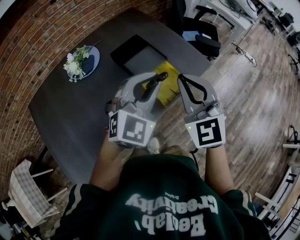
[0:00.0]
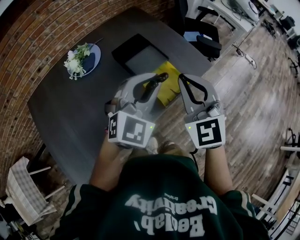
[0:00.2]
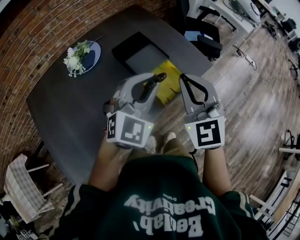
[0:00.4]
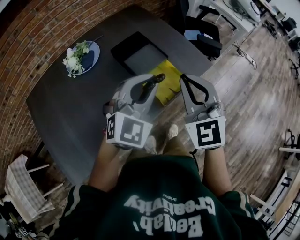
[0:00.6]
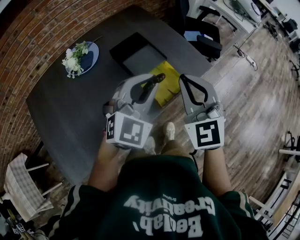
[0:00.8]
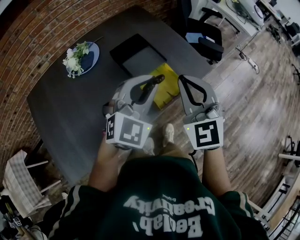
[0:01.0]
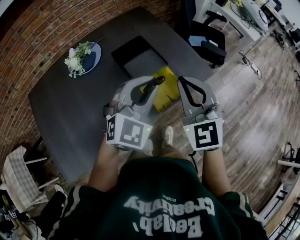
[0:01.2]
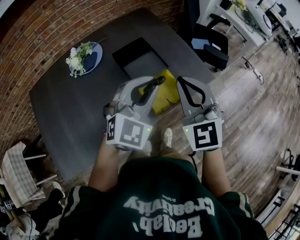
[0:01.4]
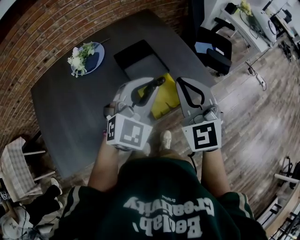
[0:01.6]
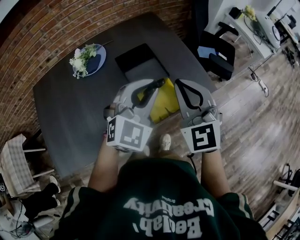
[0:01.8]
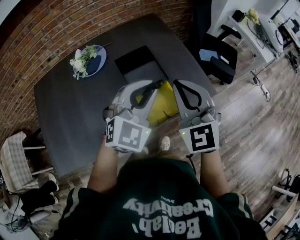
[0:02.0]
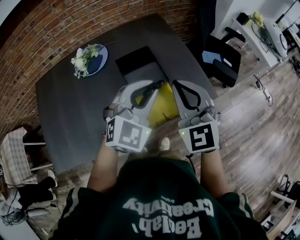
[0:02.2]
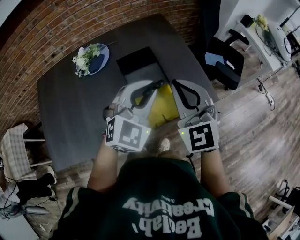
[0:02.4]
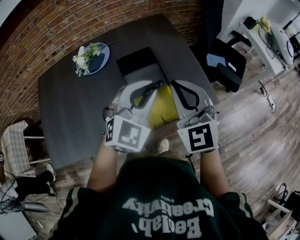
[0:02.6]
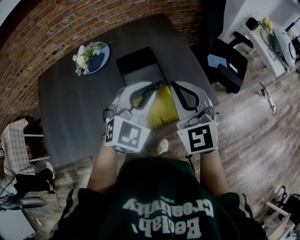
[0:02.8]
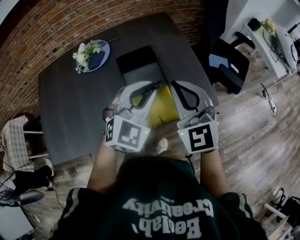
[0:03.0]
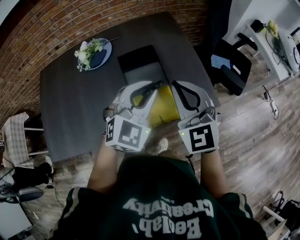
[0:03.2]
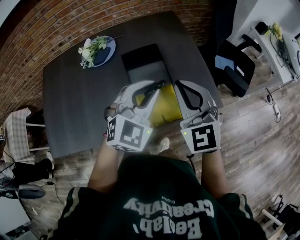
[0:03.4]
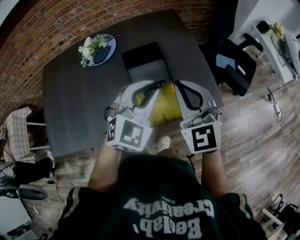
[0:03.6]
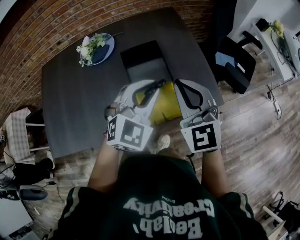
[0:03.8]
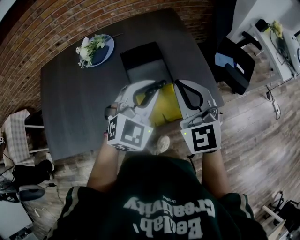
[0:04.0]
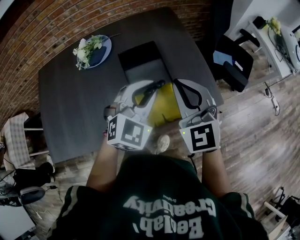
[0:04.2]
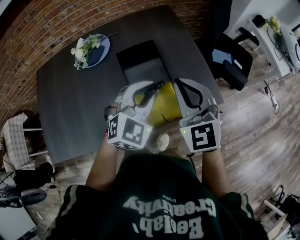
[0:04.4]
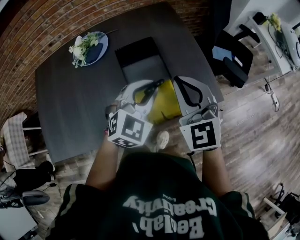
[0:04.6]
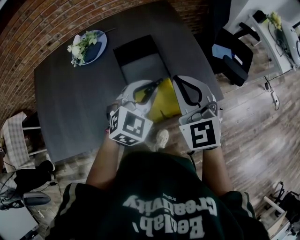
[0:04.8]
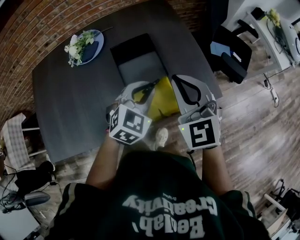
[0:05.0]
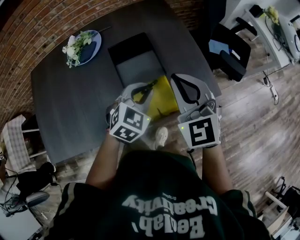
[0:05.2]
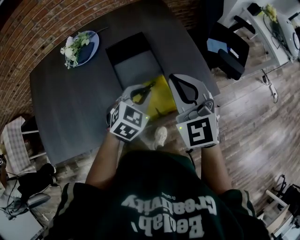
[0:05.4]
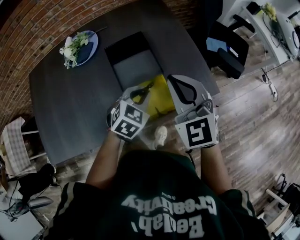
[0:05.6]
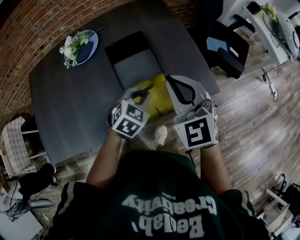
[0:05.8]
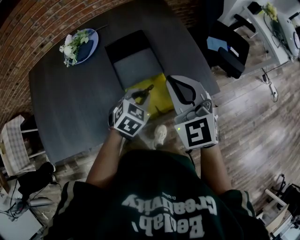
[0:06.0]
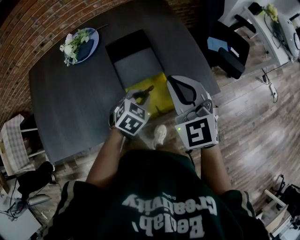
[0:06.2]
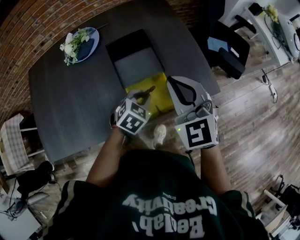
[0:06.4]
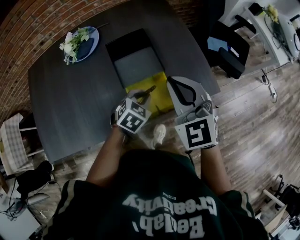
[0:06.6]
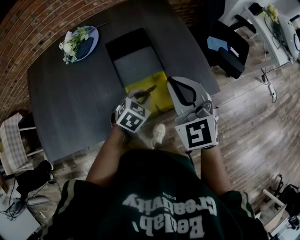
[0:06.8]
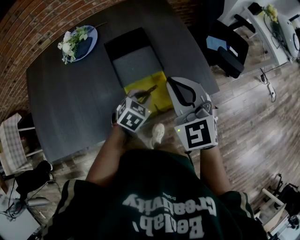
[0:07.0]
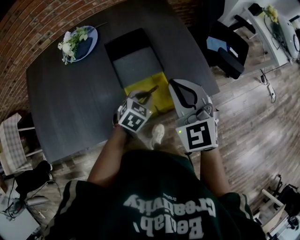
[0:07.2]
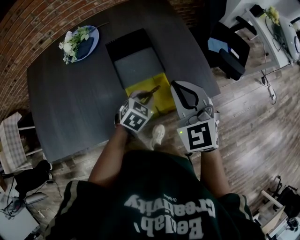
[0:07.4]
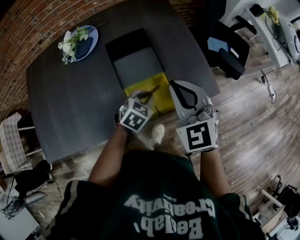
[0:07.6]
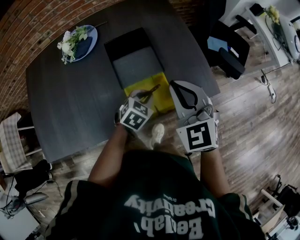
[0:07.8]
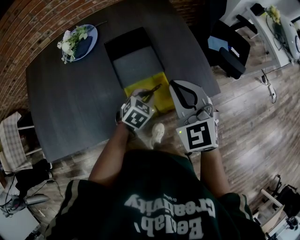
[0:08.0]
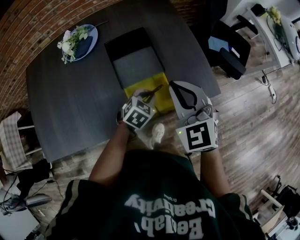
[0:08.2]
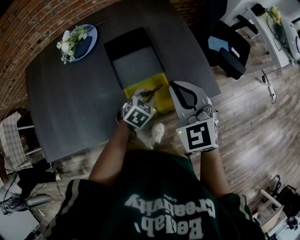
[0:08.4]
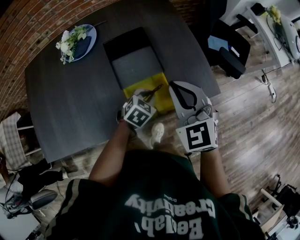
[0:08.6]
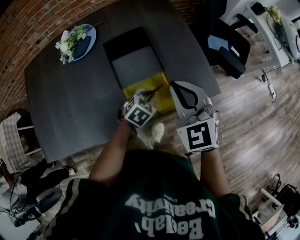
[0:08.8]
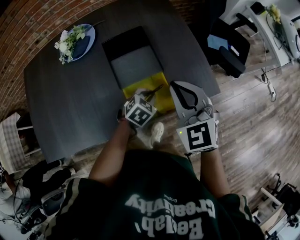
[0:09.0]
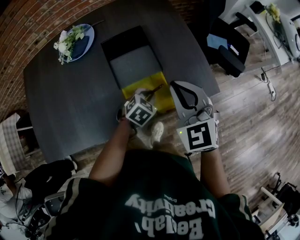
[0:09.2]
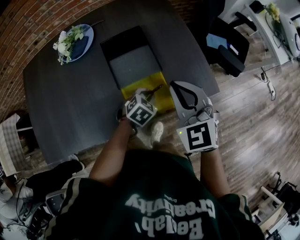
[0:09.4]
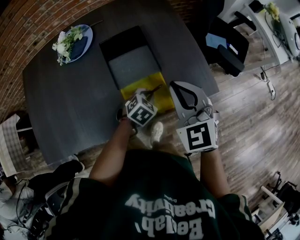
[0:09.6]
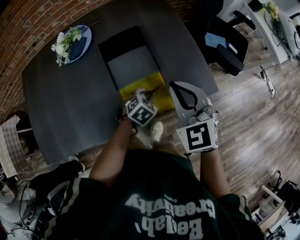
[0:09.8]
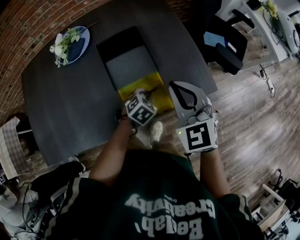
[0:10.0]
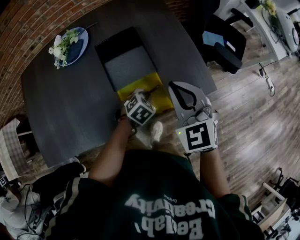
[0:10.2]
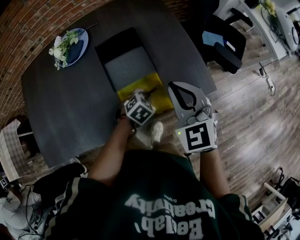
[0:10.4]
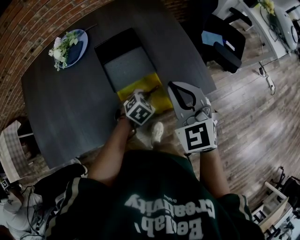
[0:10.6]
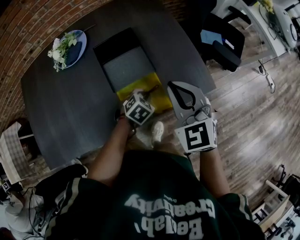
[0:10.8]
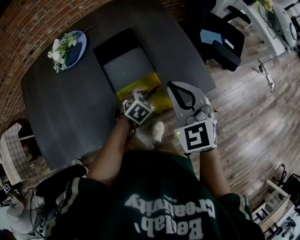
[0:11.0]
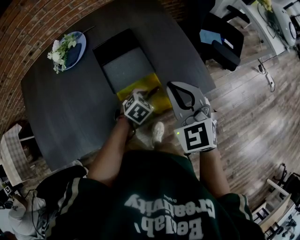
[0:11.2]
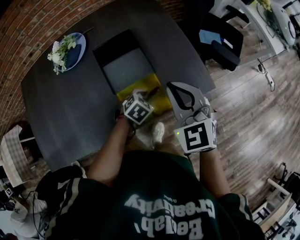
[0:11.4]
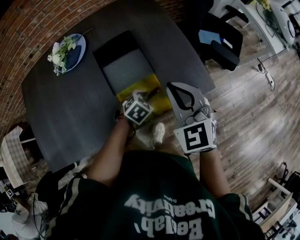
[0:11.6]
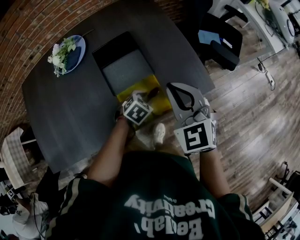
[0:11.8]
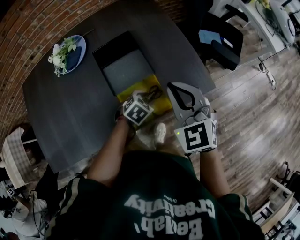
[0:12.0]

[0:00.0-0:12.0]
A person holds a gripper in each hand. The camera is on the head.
0:00.0 to 0:01.6: The grippers both shift forward by approximately 5 cm.
0:01.6 to 0:03.0: The left gripper goes some 10 cm forward and to the right; the right gripper is displaced forward by about 10 cm.
0:03.0 to 0:04.4: The grippers make only small movements.
0:04.4 to 0:06.0: The left gripper goes about 15 cm downward, and swivels about 30 degrees.
0:06.0 to 0:07.6: The left gripper heads downward, covering roughly 5 cm.
0:07.6 to 0:09.0: There are only small adjustments of the grippers.
0:09.0 to 0:10.4: There are only small adjustments of the grippers.
0:10.4 to 0:12.0: The left gripper opens up.

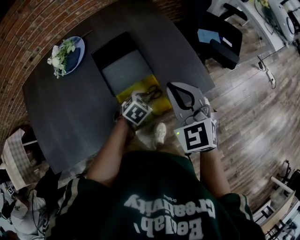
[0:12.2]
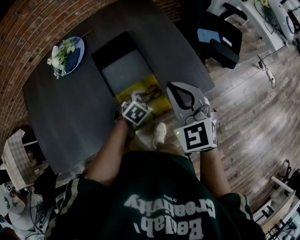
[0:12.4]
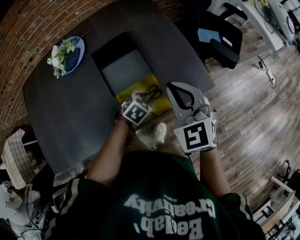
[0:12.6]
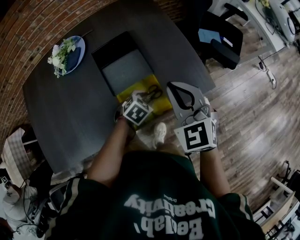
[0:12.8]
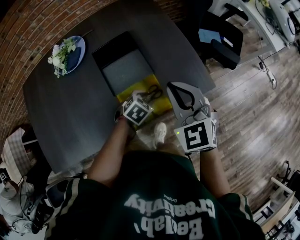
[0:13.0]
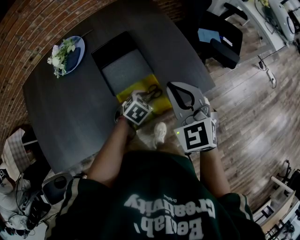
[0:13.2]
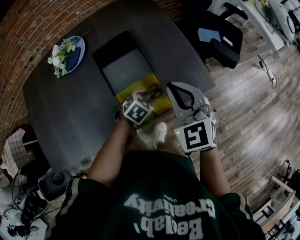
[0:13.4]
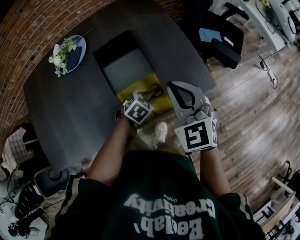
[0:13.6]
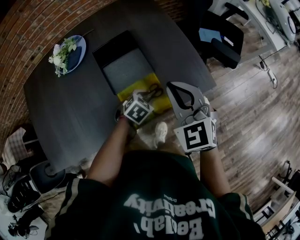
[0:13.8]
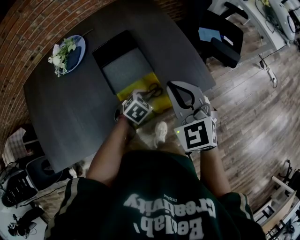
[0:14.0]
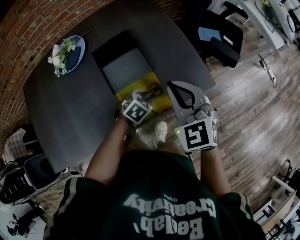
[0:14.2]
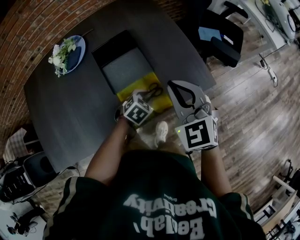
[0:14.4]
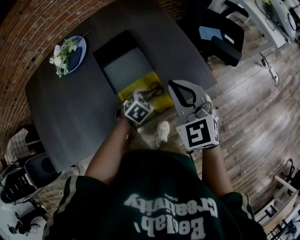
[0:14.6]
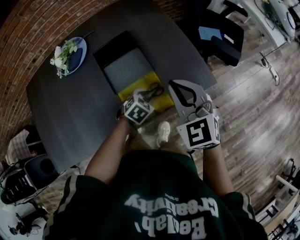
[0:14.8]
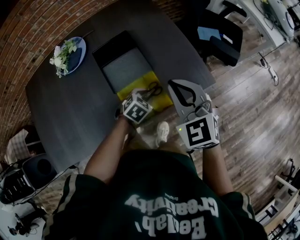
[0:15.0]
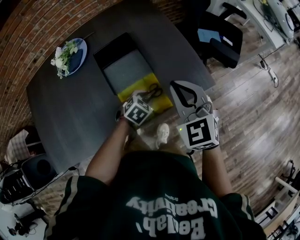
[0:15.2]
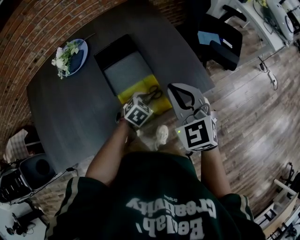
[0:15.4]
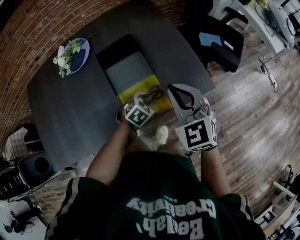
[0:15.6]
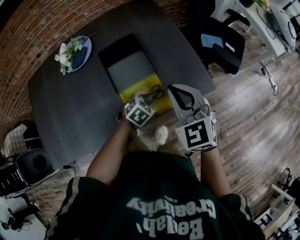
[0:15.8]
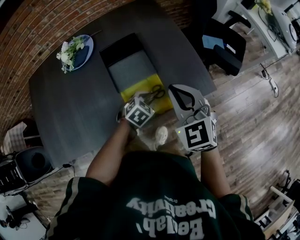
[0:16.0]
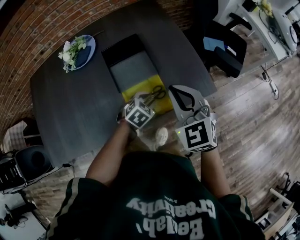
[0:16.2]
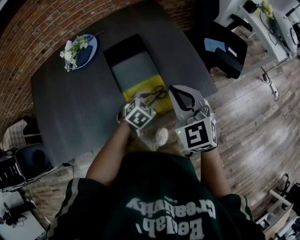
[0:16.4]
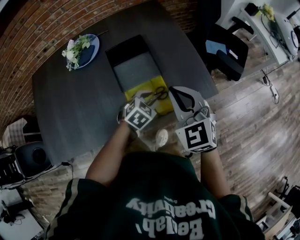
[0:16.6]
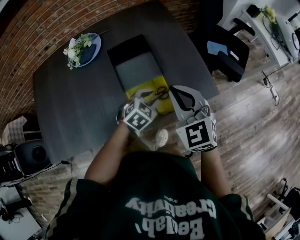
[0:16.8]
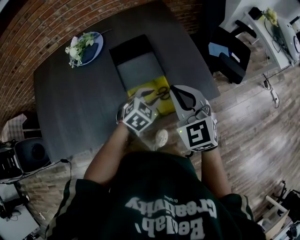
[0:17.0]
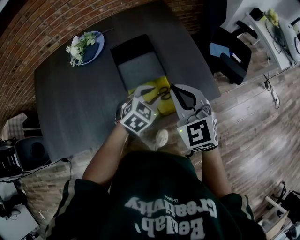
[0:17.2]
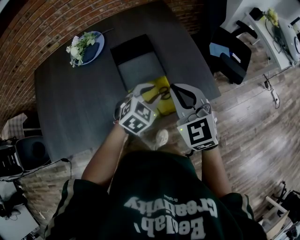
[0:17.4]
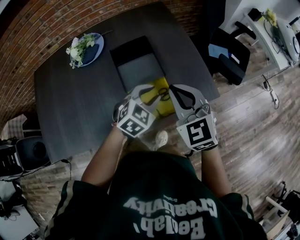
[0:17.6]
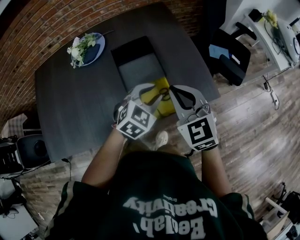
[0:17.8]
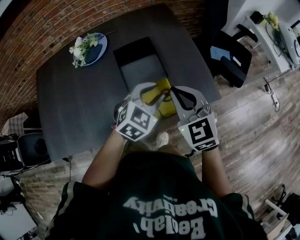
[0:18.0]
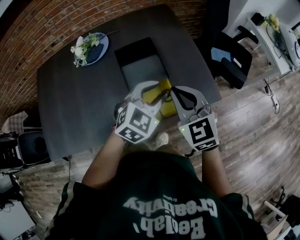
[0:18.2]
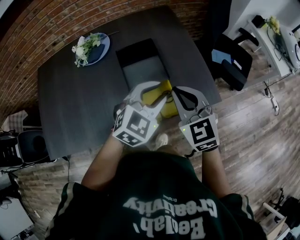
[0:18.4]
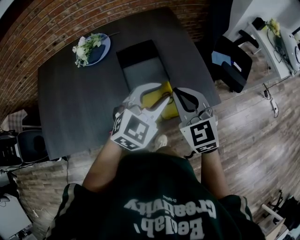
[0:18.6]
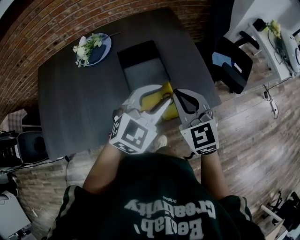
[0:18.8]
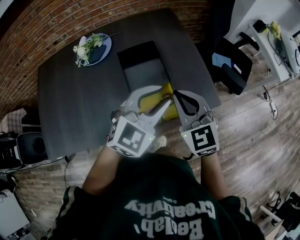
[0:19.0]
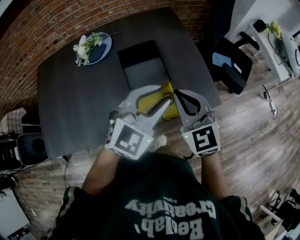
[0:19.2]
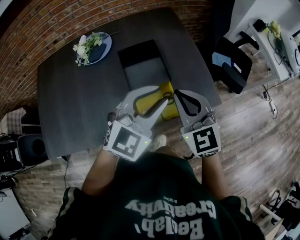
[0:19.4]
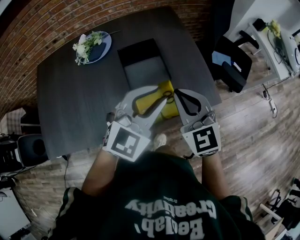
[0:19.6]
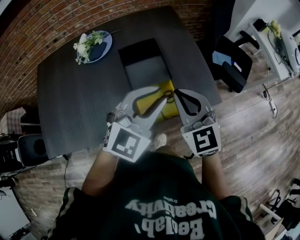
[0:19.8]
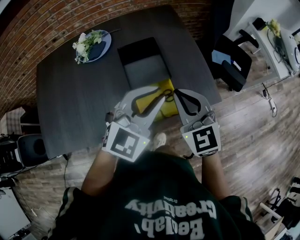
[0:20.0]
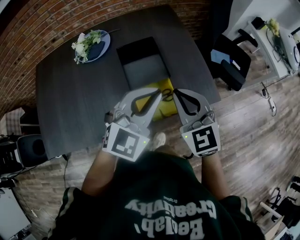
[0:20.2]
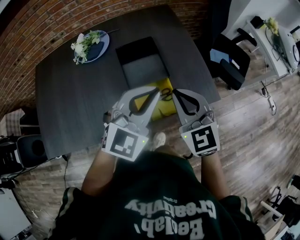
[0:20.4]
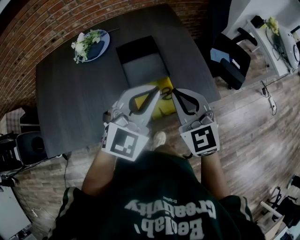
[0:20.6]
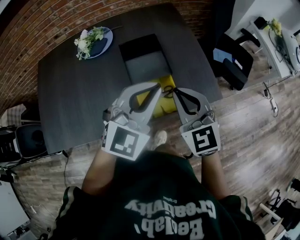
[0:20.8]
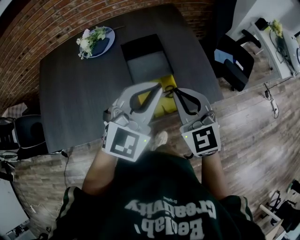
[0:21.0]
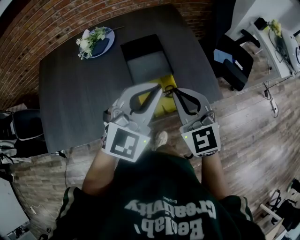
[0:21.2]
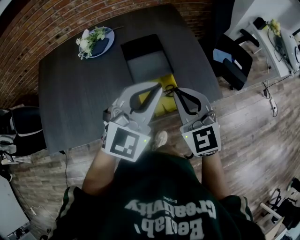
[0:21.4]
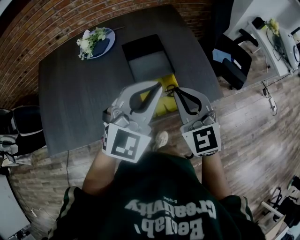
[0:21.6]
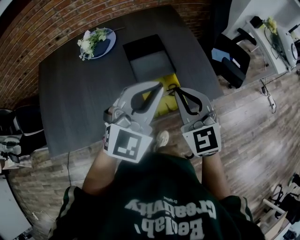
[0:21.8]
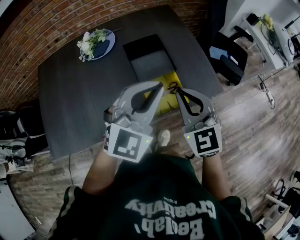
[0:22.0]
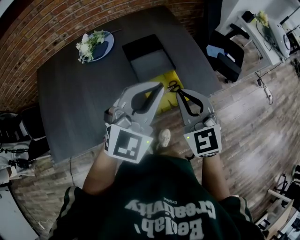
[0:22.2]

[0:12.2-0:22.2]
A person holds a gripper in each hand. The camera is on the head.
0:12.2 to 0:13.6: Neither gripper changes place.
0:13.6 to 0:16.4: The grippers move only a little.
0:16.4 to 0:18.0: The left gripper heads upward, covering roughly 15 cm, and changes its angle by about 20 degrees.
0:18.0 to 0:19.4: The left gripper heads upward, covering approximately 10 cm.
0:19.4 to 0:20.8: The left gripper closes up.
0:20.8 to 0:22.2: The right gripper is displaced backward by about 5 cm. The left gripper shifts about 10 cm to the left and backward.

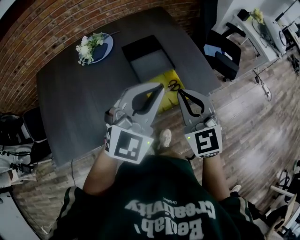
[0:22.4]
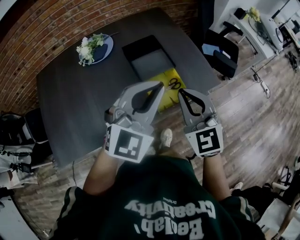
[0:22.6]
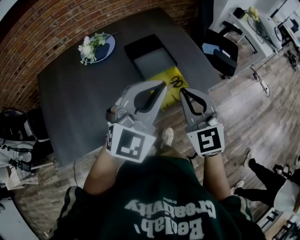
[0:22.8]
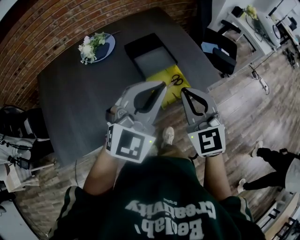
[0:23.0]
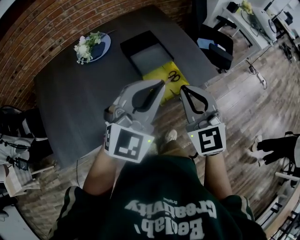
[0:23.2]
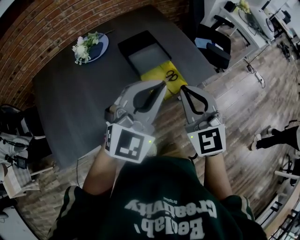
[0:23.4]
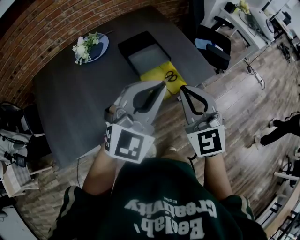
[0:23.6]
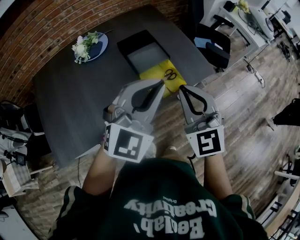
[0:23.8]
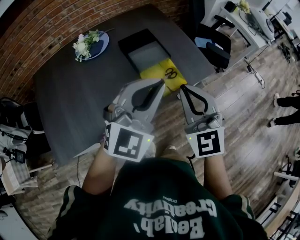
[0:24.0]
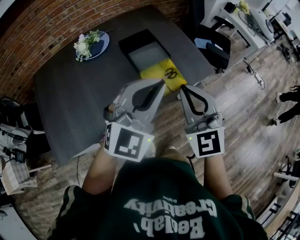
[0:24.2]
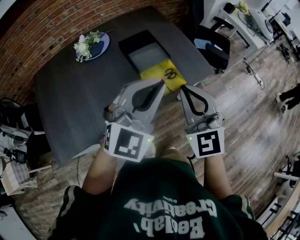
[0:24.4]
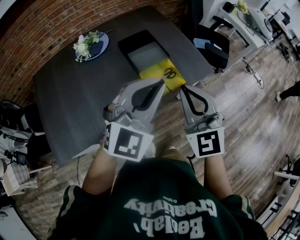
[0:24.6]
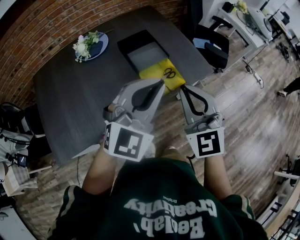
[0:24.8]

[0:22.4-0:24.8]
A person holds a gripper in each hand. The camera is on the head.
0:22.4 to 0:23.6: Both grippers travel together backward, roughly 5 cm.
0:23.6 to 0:24.8: The grippers stay close to where they were, moving slightly.
